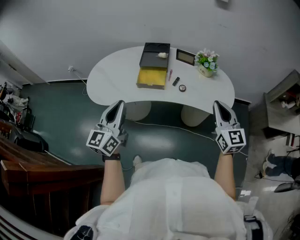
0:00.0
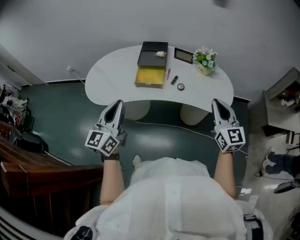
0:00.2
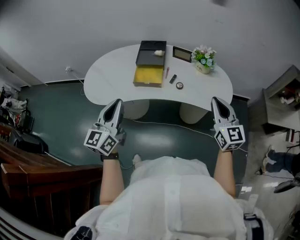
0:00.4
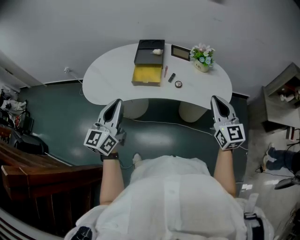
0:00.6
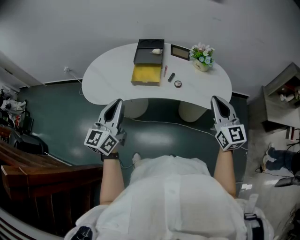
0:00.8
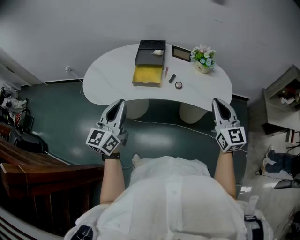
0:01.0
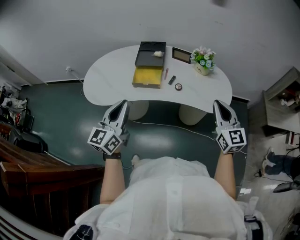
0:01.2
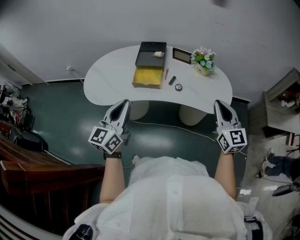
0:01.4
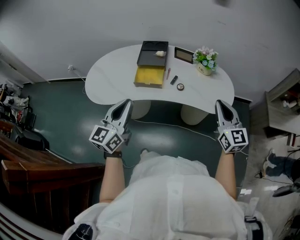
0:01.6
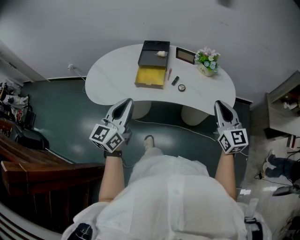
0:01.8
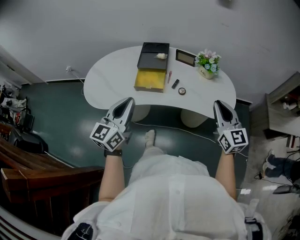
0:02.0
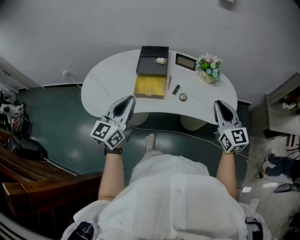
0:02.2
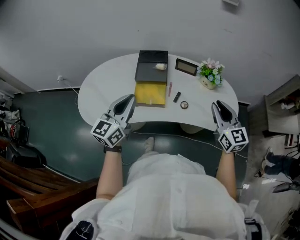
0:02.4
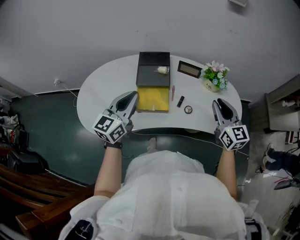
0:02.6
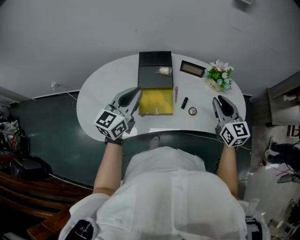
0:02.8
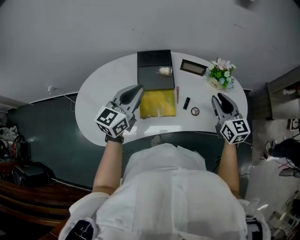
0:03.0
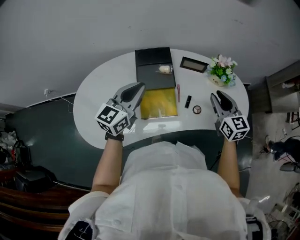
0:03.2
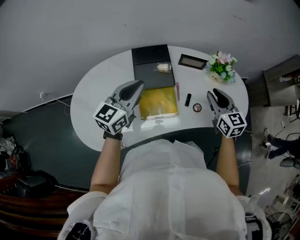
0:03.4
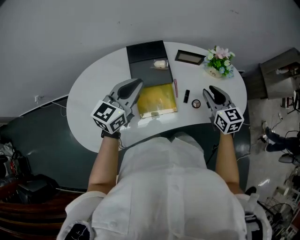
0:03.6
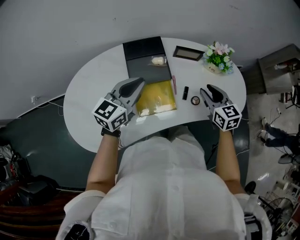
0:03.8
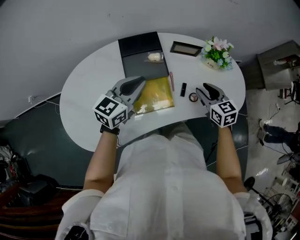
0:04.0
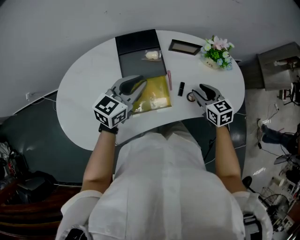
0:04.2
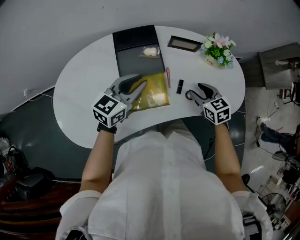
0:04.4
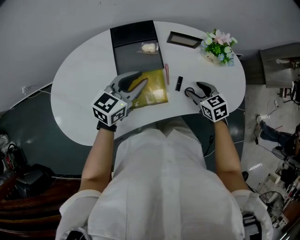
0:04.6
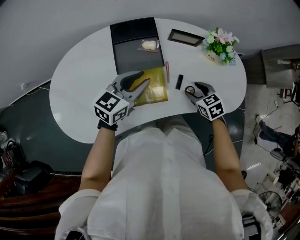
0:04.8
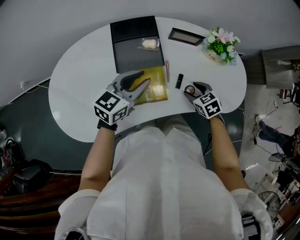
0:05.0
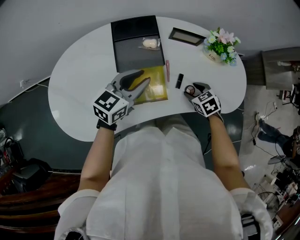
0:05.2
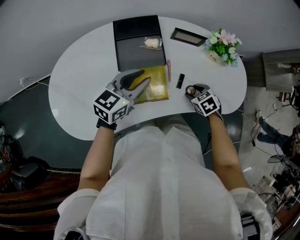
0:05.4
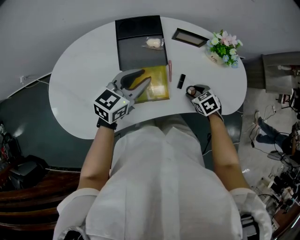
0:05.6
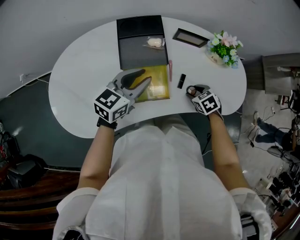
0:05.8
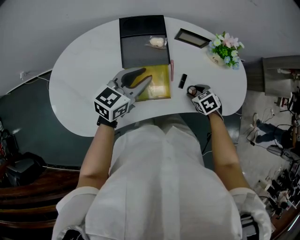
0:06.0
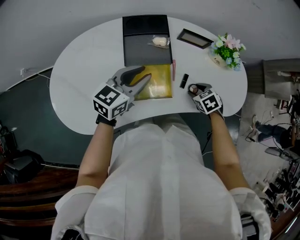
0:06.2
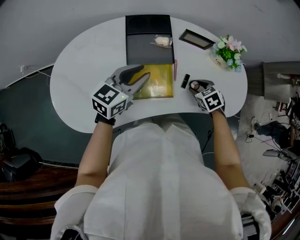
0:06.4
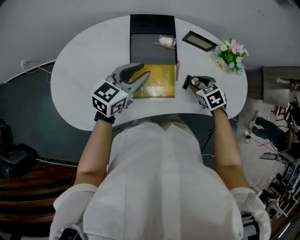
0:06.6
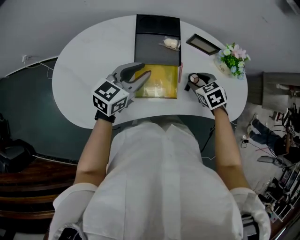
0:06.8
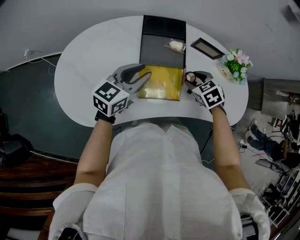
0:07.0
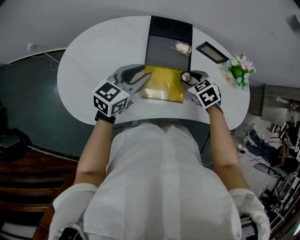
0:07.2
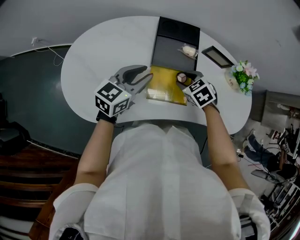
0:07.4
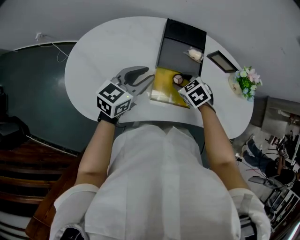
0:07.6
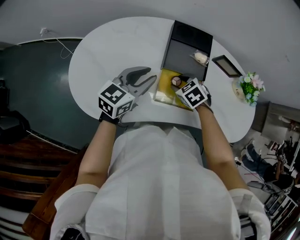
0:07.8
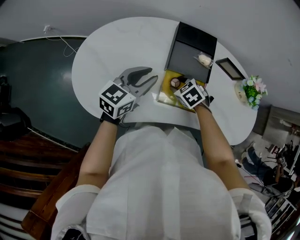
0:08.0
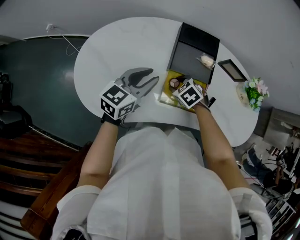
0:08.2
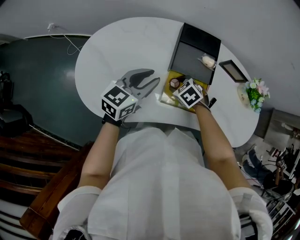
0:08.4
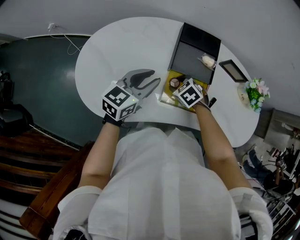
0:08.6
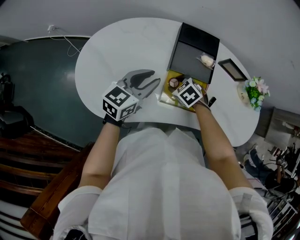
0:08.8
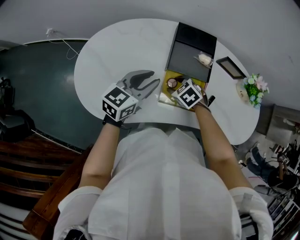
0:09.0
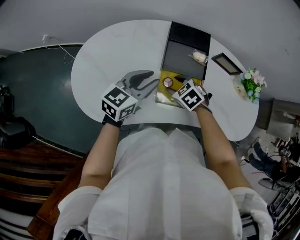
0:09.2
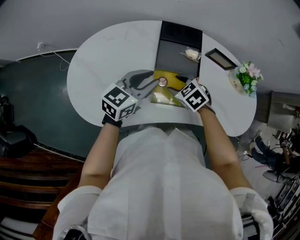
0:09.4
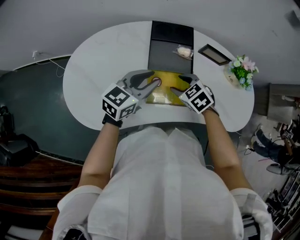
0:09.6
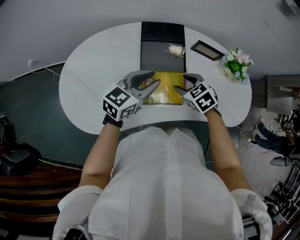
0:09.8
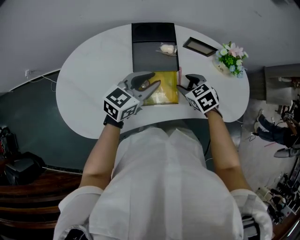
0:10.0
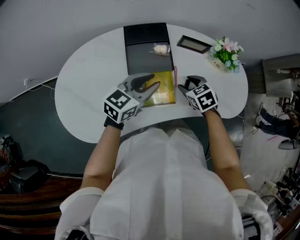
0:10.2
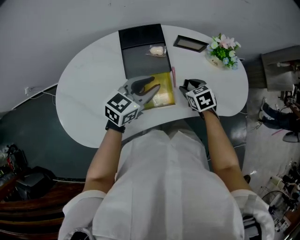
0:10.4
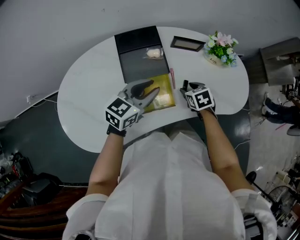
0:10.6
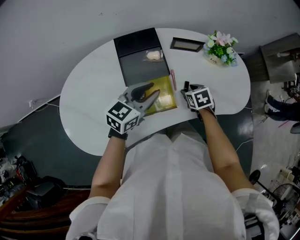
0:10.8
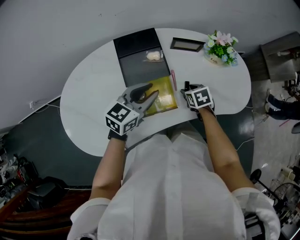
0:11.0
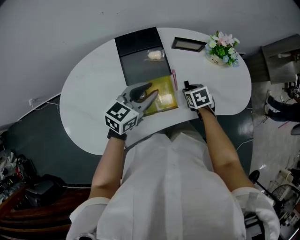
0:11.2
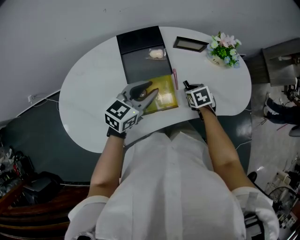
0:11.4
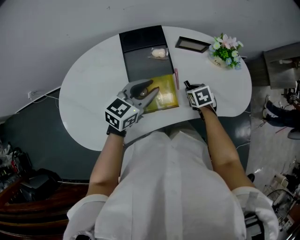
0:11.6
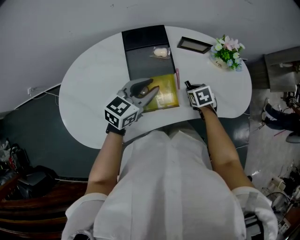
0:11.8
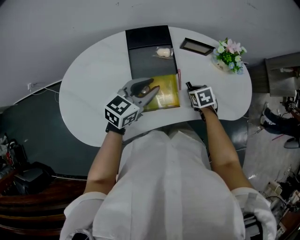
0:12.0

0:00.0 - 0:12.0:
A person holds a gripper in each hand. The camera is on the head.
0:00.0 - 0:01.6: The left gripper moves approximately 5 cm.
0:01.6 - 0:03.0: The left gripper heads forward, covering approximately 35 cm, and changes its angle by some 20 degrees. Meanwhile the right gripper goes about 30 cm forward and to the left.
0:03.0 - 0:04.4: The left gripper goes about 10 cm downward and forward, and changes its angle by roughly 20 degrees, while the right gripper moves downward, roughly 15 cm, turns by some 30 degrees, and opens up.
0:04.4 - 0:06.0: The right gripper moves downward, about 10 cm, and swivels roughly 30 degrees.
0:06.0 - 0:07.6: The left gripper heads to the left, covering approximately 10 cm, while the right gripper heads to the left, covering some 20 cm, and rotates some 30 degrees.
0:07.6 - 0:09.0: The right gripper goes approximately 5 cm to the left.
0:09.0 - 0:10.4: The right gripper changes place by approximately 20 cm, and swivels approximately 40 degrees, while the left gripper changes place by some 15 cm, and turns by roughly 20 degrees.
0:10.4 - 0:12.0: The right gripper heads downward, covering about 5 cm, and closes its fingers.

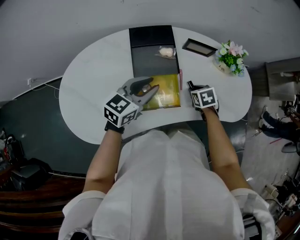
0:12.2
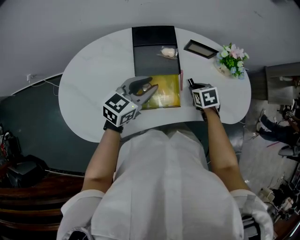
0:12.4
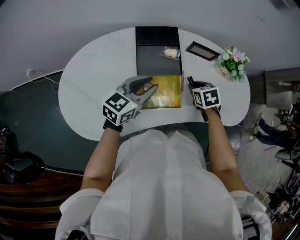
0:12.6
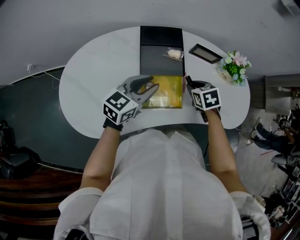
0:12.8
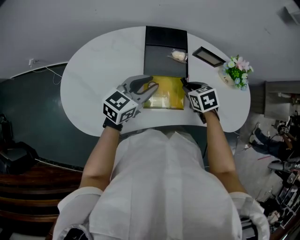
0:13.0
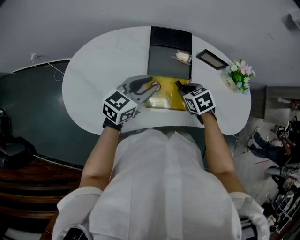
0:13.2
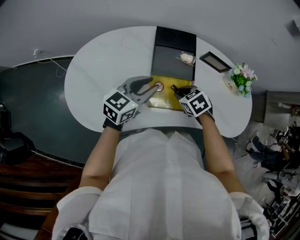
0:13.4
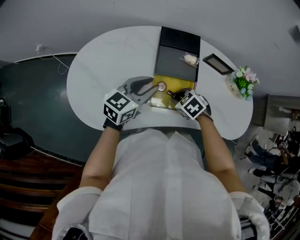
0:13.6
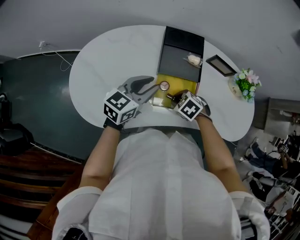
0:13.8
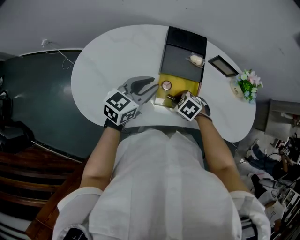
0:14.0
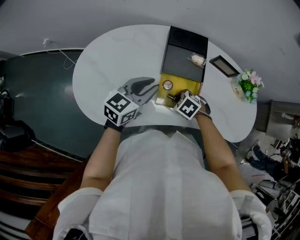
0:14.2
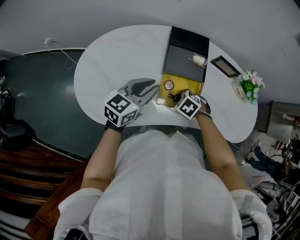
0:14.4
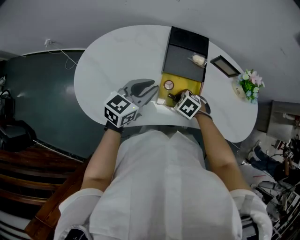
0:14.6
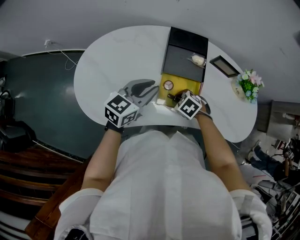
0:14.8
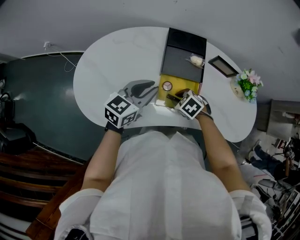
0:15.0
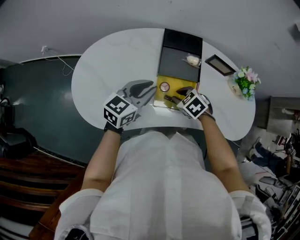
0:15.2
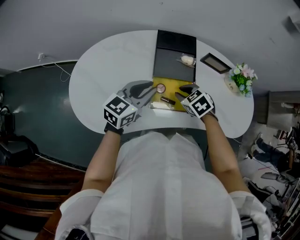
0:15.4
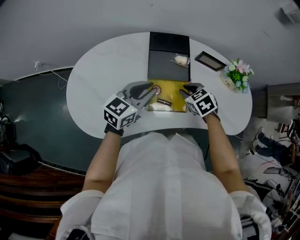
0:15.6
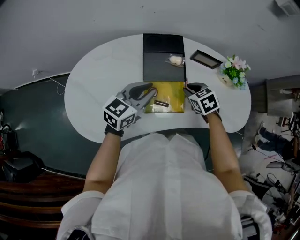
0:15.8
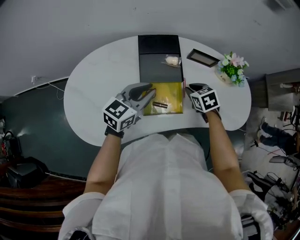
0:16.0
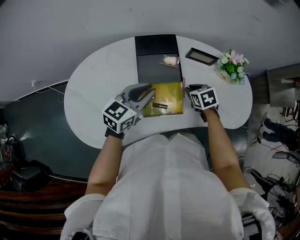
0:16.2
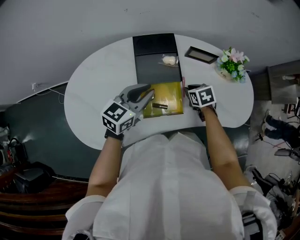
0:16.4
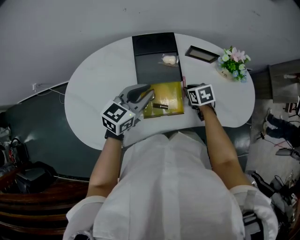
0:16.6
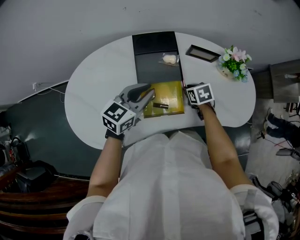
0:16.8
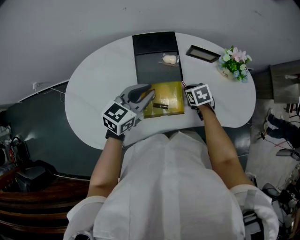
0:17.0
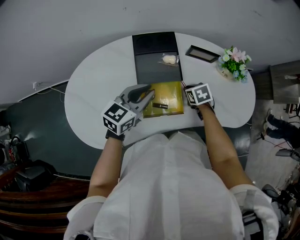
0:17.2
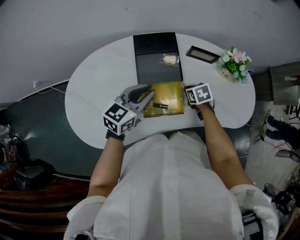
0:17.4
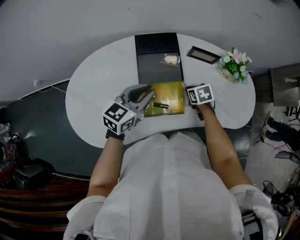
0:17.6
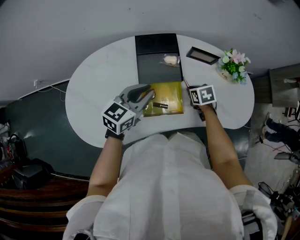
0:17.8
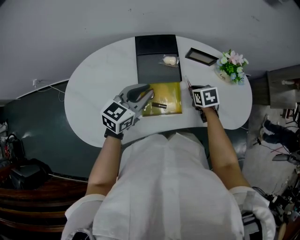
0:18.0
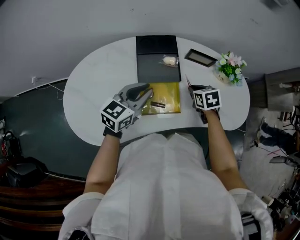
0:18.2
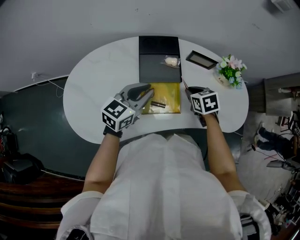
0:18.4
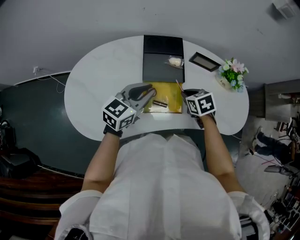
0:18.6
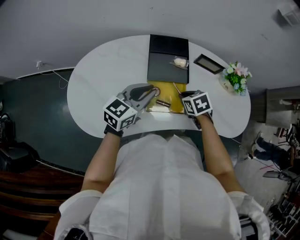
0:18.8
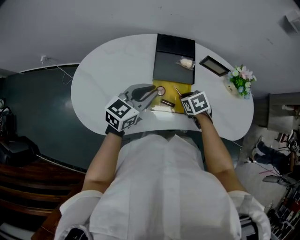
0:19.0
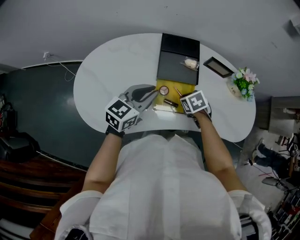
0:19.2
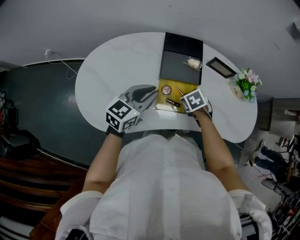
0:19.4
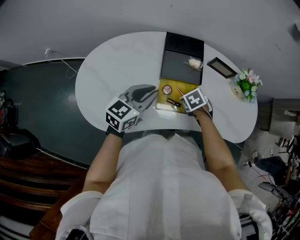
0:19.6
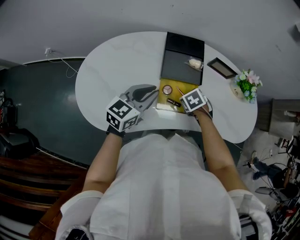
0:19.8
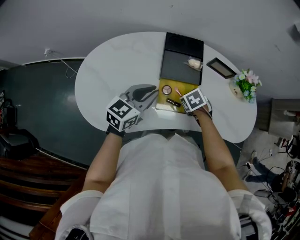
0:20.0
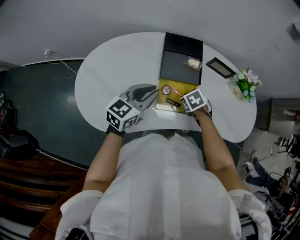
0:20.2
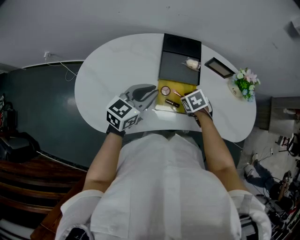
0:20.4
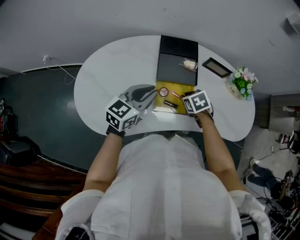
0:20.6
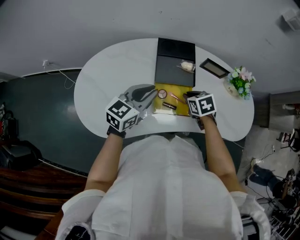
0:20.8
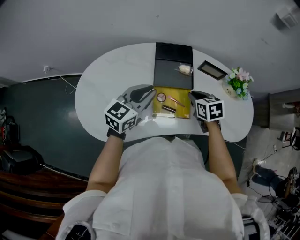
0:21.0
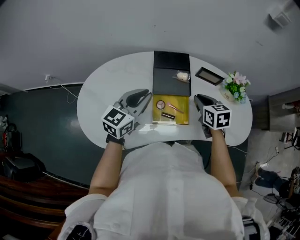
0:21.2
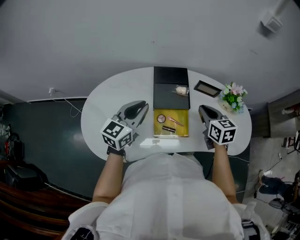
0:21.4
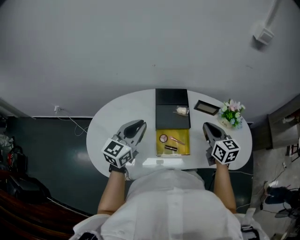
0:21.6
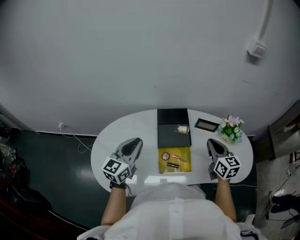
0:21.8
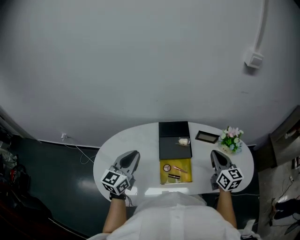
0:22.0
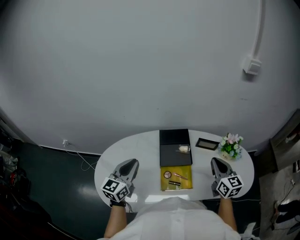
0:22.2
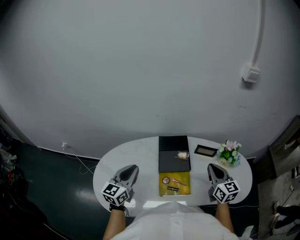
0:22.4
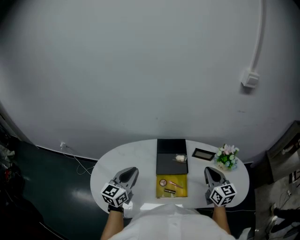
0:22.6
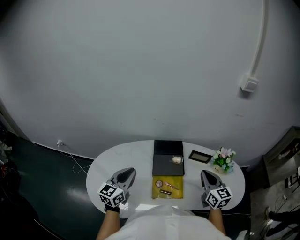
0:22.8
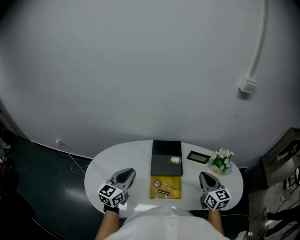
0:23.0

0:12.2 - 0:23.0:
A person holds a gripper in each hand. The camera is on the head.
0:12.2 - 0:13.8: The left gripper changes place by some 10 cm. The right gripper moves roughly 20 cm, and rolls counterclockwise, seen from behind, by some 50 degrees.
0:13.8 - 0:15.2: The grippers make only small movements.
0:15.2 - 0:16.8: The right gripper moves to the right and forward, about 15 cm, and twists some 40 degrees clockwise, seen from behind; the left gripper goes roughly 10 cm to the right and forward.
0:16.8 - 0:18.4: The right gripper moves upward, roughly 10 cm.
0:18.4 - 0:20.0: The right gripper shifts by about 10 cm, and turns by about 30 degrees, while the left gripper shifts by approximately 5 cm.
0:20.0 - 0:21.4: The left gripper is displaced upward by some 10 cm; the right gripper travels upward by roughly 20 cm, and angles its fingers upward, by roughly 50 degrees.
0:21.4 - 0:23.0: The right gripper heads upward, covering about 5 cm. The left gripper changes place by some 5 cm.

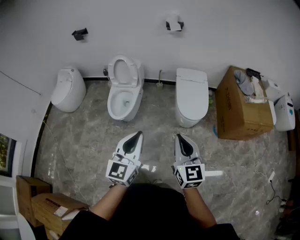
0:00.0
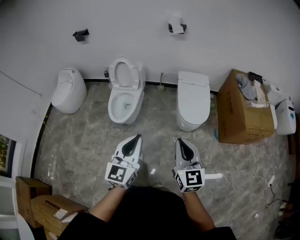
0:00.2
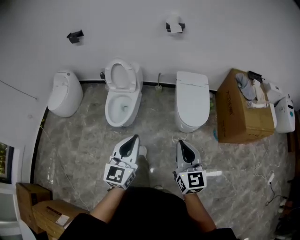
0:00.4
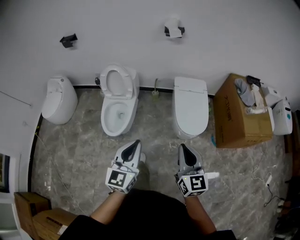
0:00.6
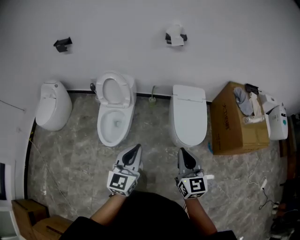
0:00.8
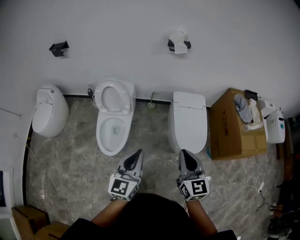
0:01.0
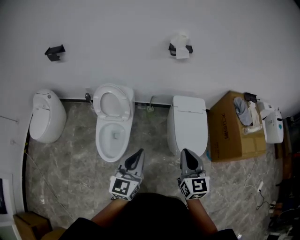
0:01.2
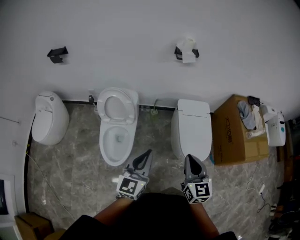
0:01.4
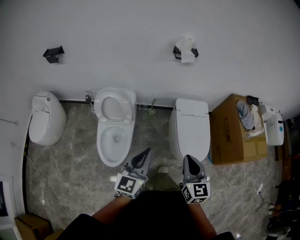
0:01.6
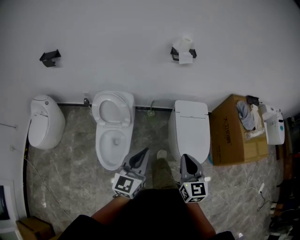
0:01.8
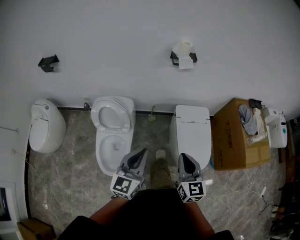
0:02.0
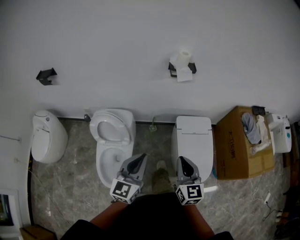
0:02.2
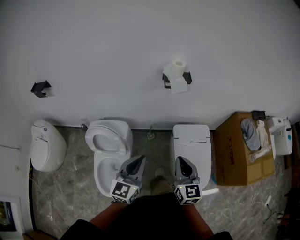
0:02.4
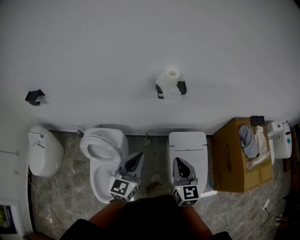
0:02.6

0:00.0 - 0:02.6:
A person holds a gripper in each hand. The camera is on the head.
0:00.0 - 0:01.2: The two grippers travel together, forward, approximately 40 cm.
0:01.2 - 0:02.6: The two grippers go some 40 cm forward.
